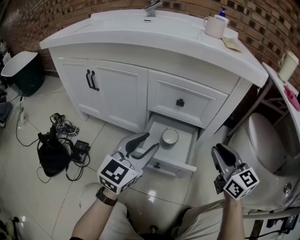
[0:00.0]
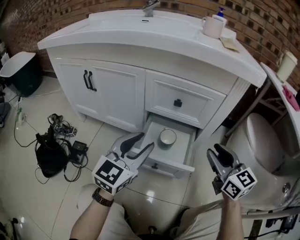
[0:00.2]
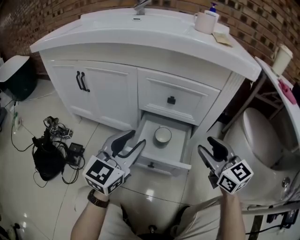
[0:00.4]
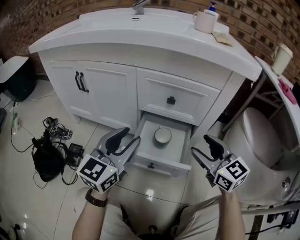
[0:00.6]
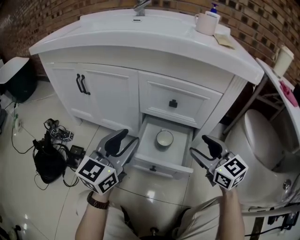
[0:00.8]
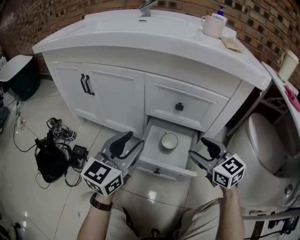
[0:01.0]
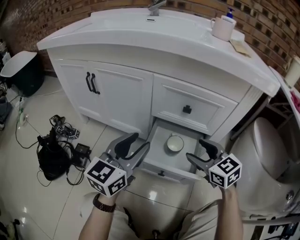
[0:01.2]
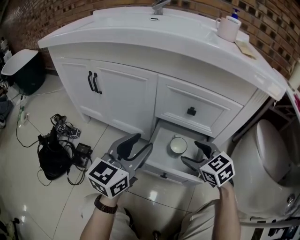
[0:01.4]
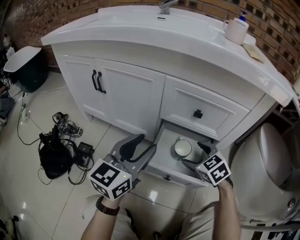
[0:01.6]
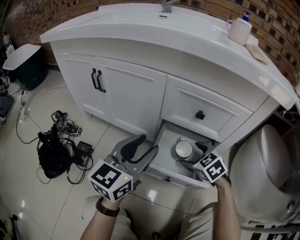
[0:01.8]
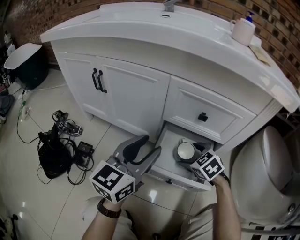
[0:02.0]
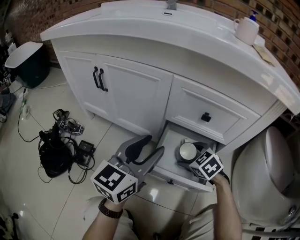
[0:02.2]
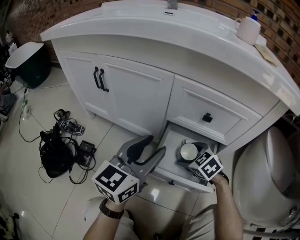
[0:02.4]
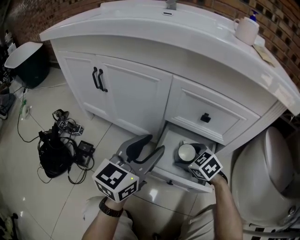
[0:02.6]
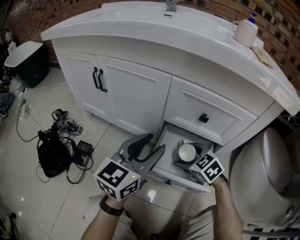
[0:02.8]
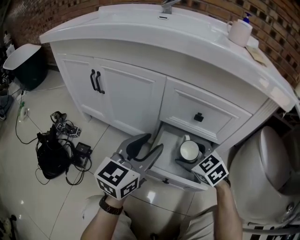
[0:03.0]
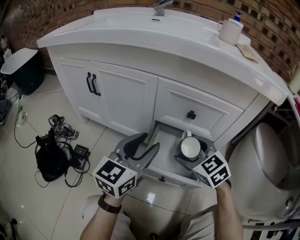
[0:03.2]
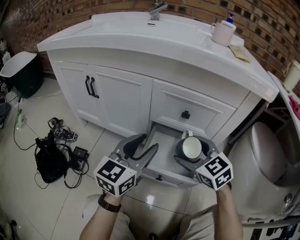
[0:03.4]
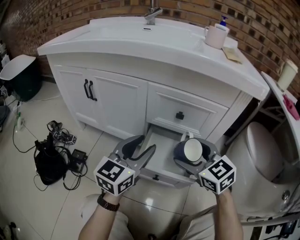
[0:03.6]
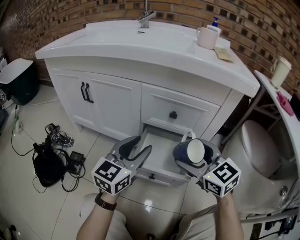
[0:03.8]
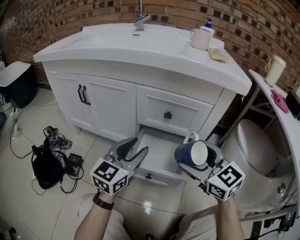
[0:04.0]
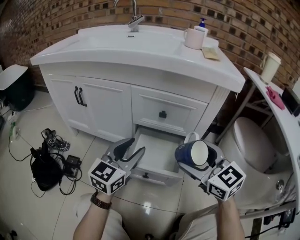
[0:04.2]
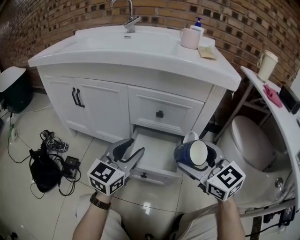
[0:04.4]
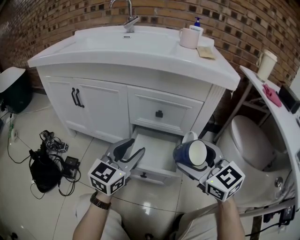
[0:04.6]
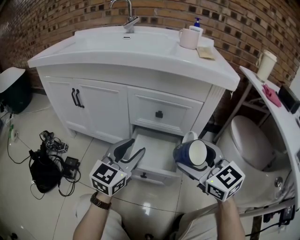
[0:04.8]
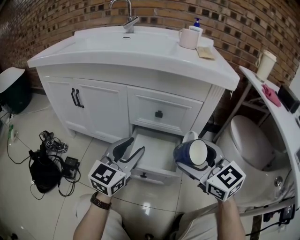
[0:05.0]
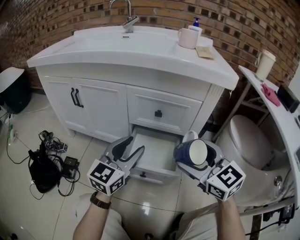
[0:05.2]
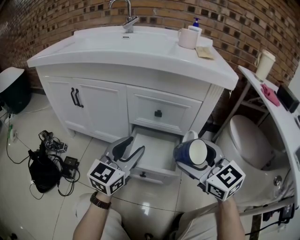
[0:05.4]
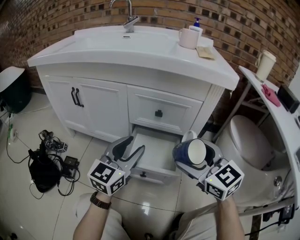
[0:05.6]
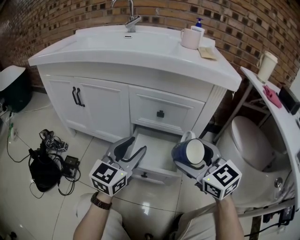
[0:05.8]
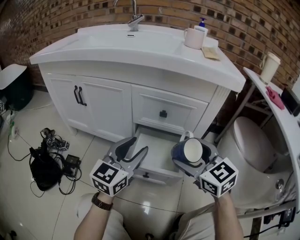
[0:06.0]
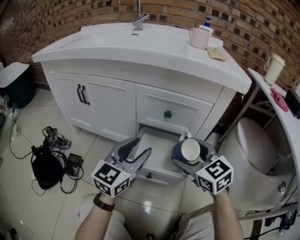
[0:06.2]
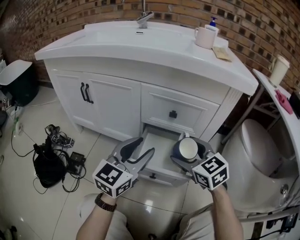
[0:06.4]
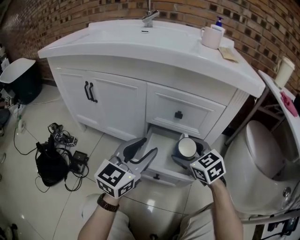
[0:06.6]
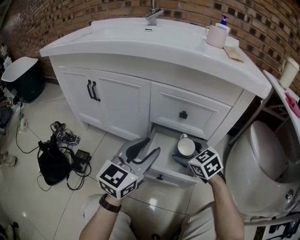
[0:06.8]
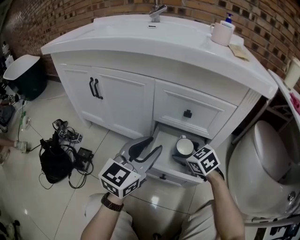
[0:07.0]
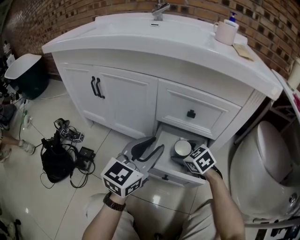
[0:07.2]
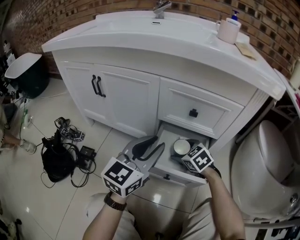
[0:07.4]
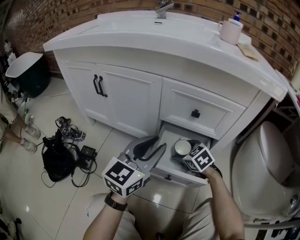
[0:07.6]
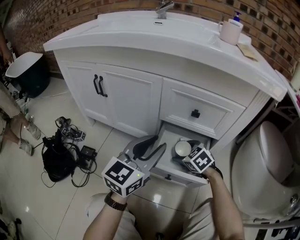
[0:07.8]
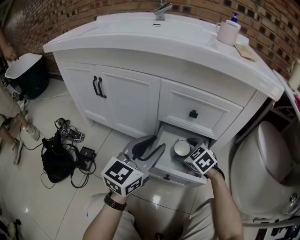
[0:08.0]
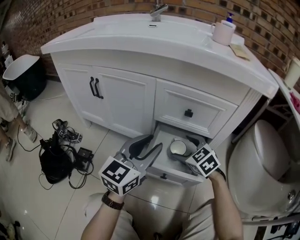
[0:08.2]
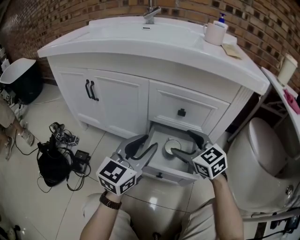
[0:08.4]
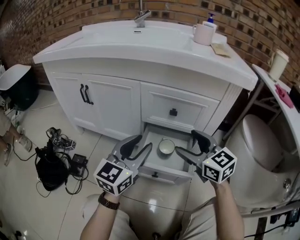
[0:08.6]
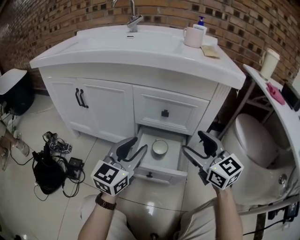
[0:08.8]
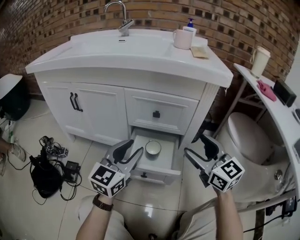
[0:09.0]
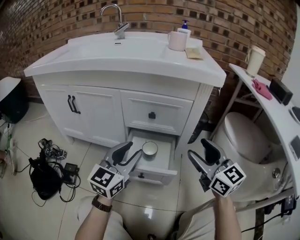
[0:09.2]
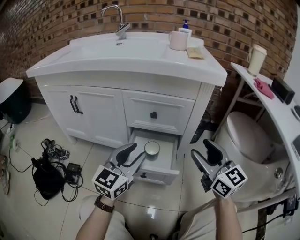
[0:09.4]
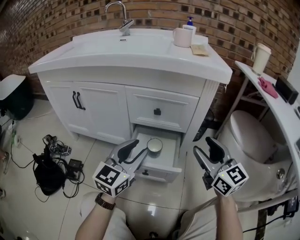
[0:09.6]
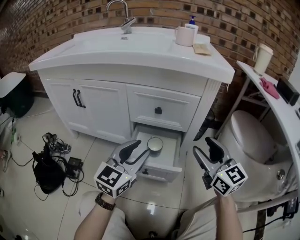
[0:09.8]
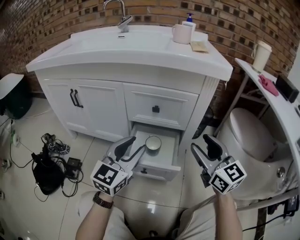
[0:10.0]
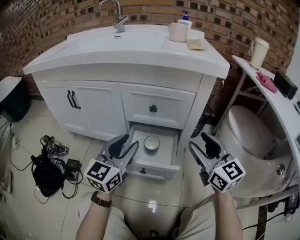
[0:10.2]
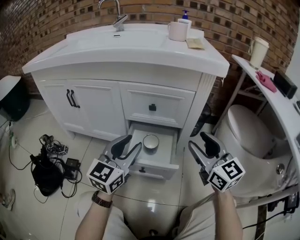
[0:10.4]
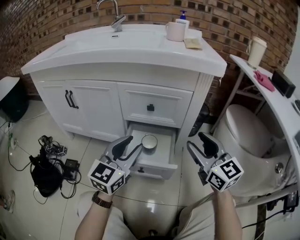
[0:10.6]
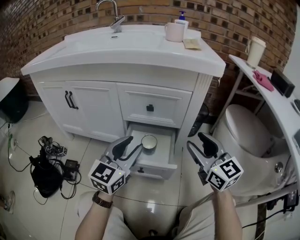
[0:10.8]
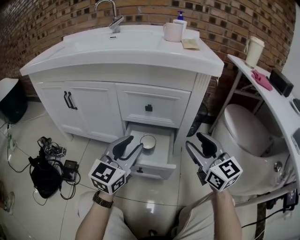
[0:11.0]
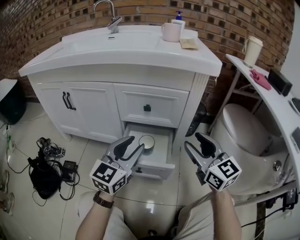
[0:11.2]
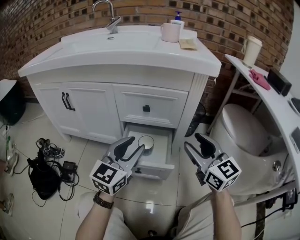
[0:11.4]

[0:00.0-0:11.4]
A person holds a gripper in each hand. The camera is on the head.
0:00.0 to 0:01.4: The left gripper moves to the left, roughly 5 cm. Meanwhile the right gripper is displaced to the left, downward and forward by about 15 cm, changes its angle by about 30 degrees, and opens up.
0:01.4 to 0:02.8: The right gripper heads downward, covering roughly 5 cm.
0:02.8 to 0:04.2: The left gripper moves about 5 cm; the right gripper goes approximately 25 cm upward and backward, and points its fingers some 30 degrees further upward.
0:04.2 to 0:05.6: The grippers move only a little.
0:05.6 to 0:07.2: The right gripper moves downward and forward, about 25 cm, and angles its fingers downward, by some 30 degrees.
0:07.2 to 0:08.6: The right gripper heads upward, covering some 15 cm, and angles its fingers upward, by roughly 30 degrees.
0:08.6 to 0:10.0: The right gripper travels to the right and backward by roughly 10 cm, and closes its fingers.
0:10.0 to 0:11.4: The grippers stay close to where they were, moving slightly.

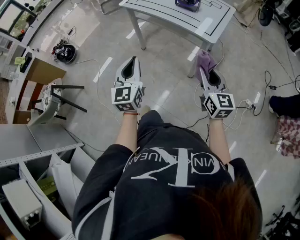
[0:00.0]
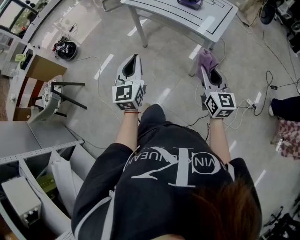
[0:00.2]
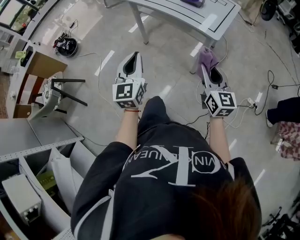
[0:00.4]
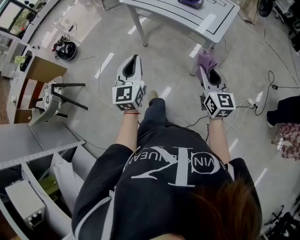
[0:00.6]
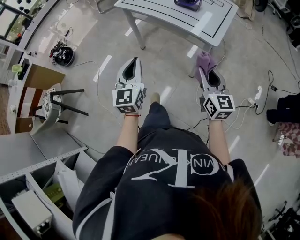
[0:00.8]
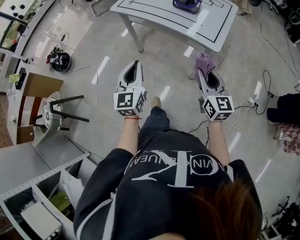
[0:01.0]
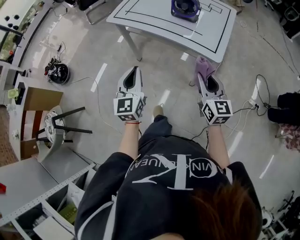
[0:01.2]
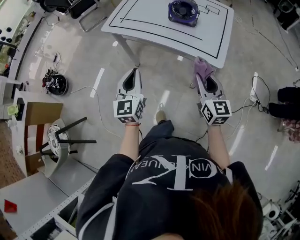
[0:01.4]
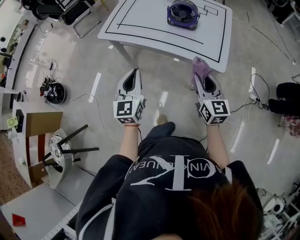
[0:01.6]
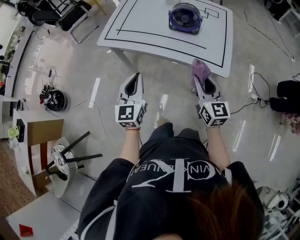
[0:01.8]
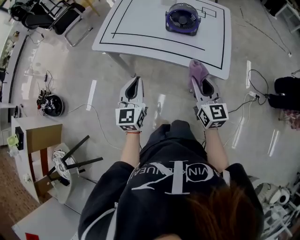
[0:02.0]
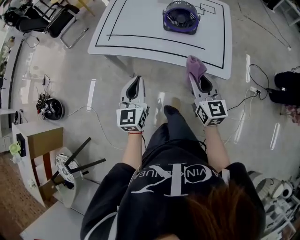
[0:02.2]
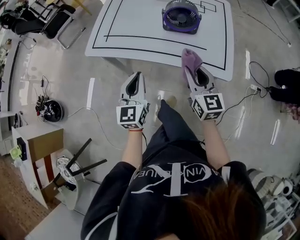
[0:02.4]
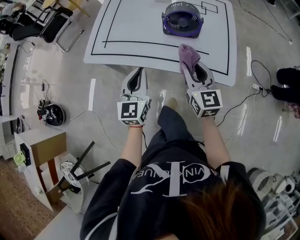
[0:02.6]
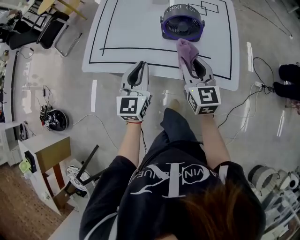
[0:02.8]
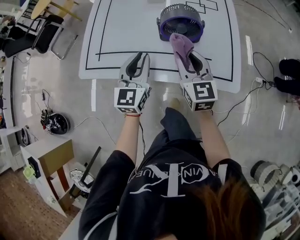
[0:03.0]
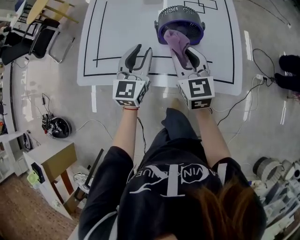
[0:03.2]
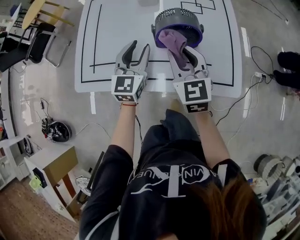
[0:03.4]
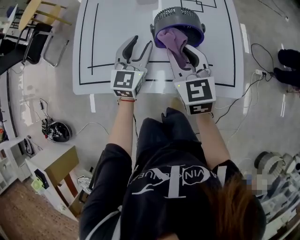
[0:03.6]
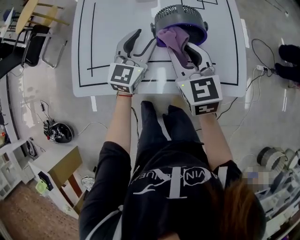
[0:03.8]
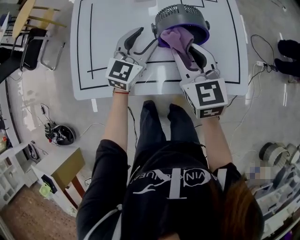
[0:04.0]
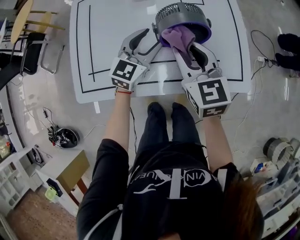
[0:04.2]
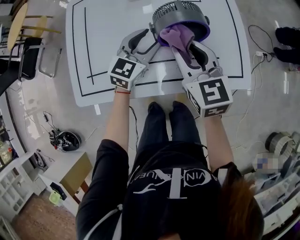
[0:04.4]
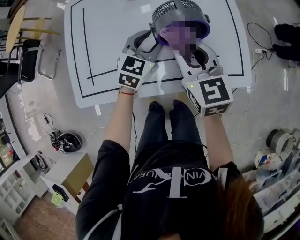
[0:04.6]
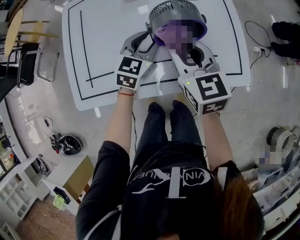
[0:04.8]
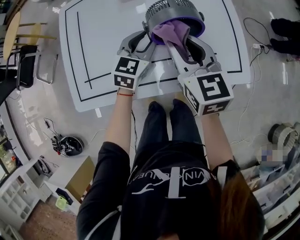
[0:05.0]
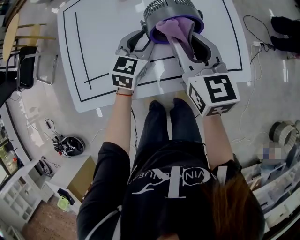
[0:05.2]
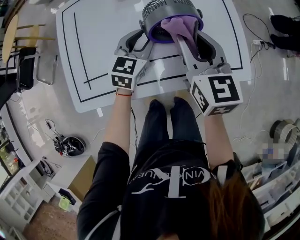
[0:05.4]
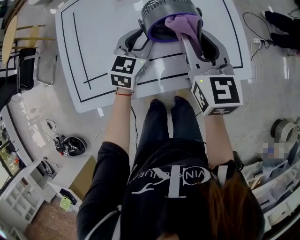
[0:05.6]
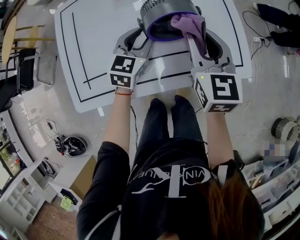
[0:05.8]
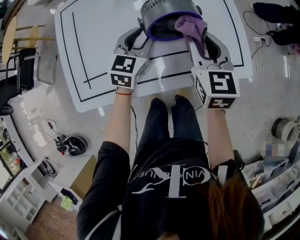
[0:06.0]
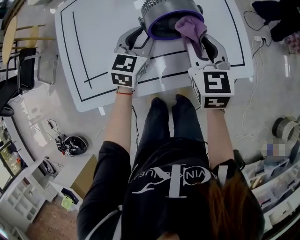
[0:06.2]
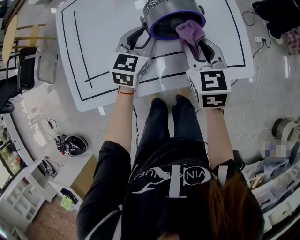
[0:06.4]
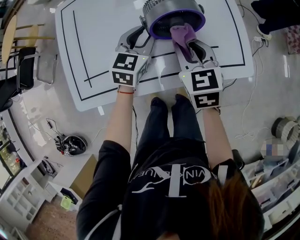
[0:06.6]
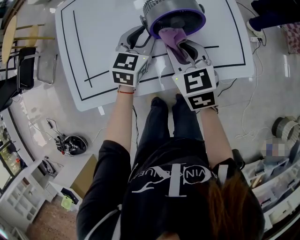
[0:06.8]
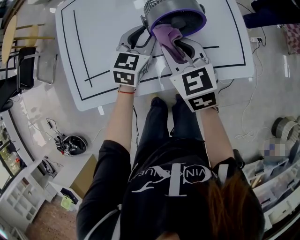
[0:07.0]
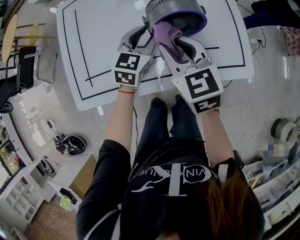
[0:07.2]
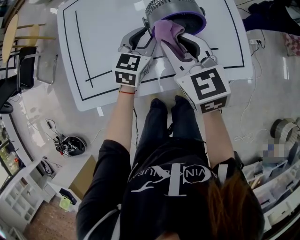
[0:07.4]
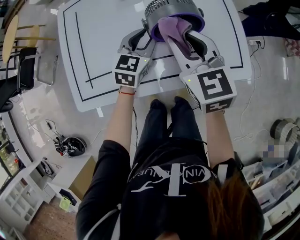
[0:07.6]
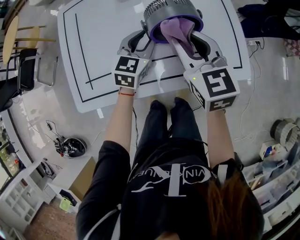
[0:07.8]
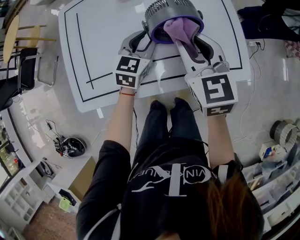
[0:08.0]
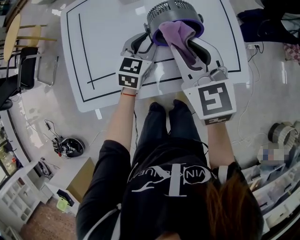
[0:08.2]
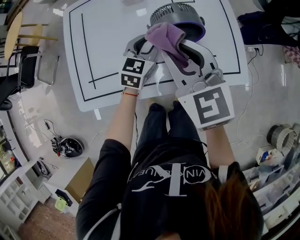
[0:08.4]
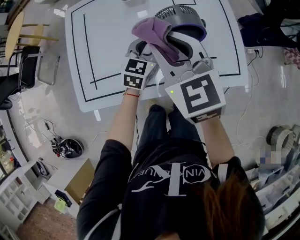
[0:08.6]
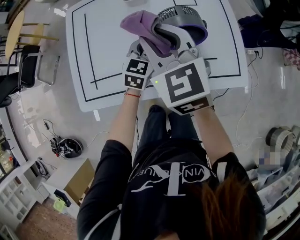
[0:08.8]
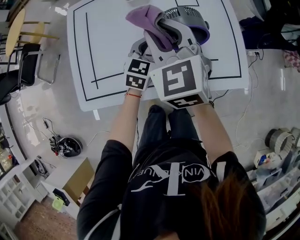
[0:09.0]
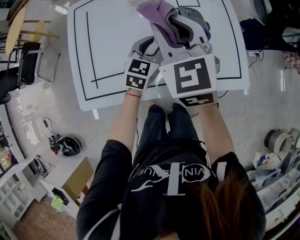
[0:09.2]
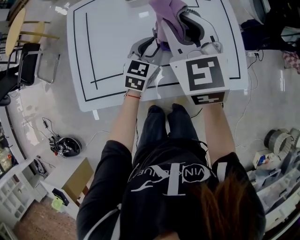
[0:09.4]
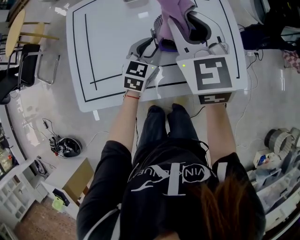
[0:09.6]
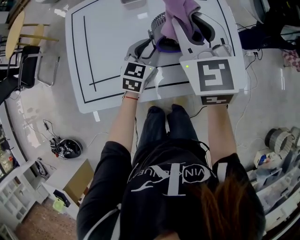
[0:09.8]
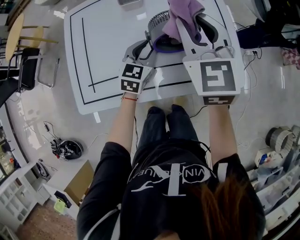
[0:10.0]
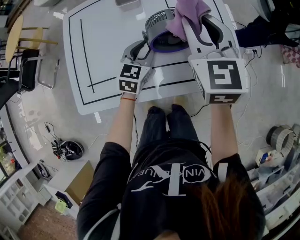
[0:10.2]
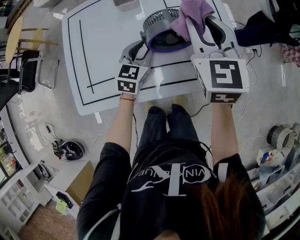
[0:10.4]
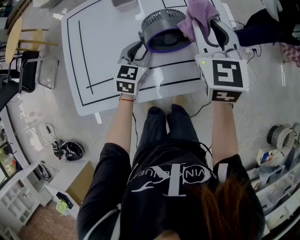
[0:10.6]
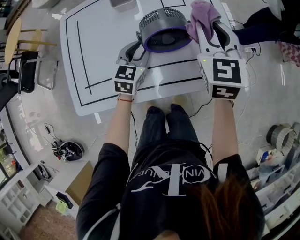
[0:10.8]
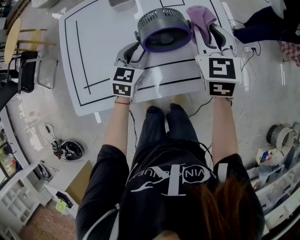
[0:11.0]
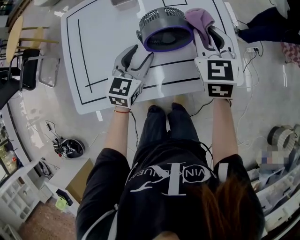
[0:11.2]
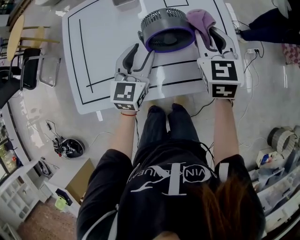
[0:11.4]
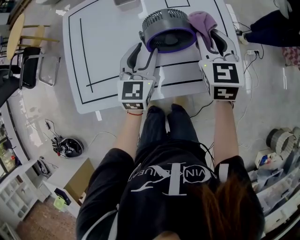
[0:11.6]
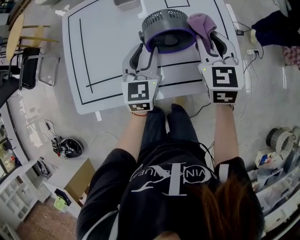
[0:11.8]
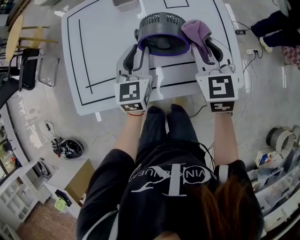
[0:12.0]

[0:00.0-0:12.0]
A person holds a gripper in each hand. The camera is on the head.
0:00.0 to 0:01.6: The two grippers go roughly 25 cm forward.
0:01.6 to 0:03.0: Both grippers move forward, roughly 25 cm. The left gripper turns by about 20 degrees.
0:03.0 to 0:04.4: The left gripper is displaced forward and downward by roughly 15 cm, turns by roughly 30 degrees, and opens up. Meanwhile the right gripper shifts roughly 5 cm forward.
0:04.4 to 0:06.0: The right gripper is displaced to the right by about 5 cm.
0:06.0 to 0:07.6: The right gripper moves to the left, approximately 5 cm.
0:07.6 to 0:09.0: The right gripper heads to the left and upward, covering roughly 10 cm.
0:09.0 to 0:10.4: The right gripper travels to the right by some 15 cm.
0:10.4 to 0:12.0: The right gripper moves downward, approximately 10 cm; the left gripper shifts roughly 5 cm upward, changes its angle by roughly 20 degrees, and opens, then closes once more.
